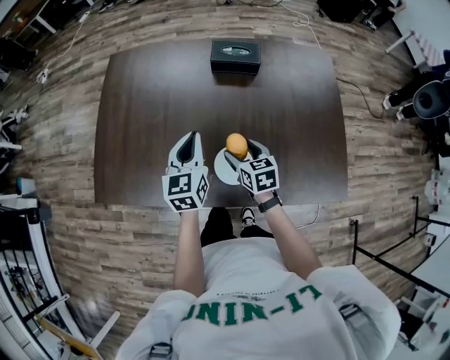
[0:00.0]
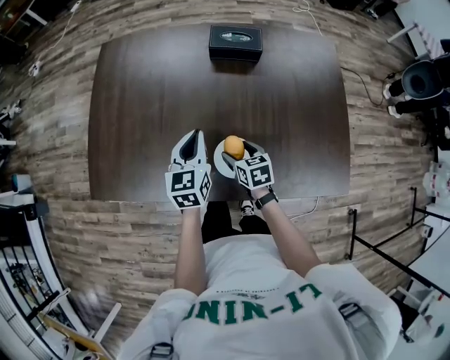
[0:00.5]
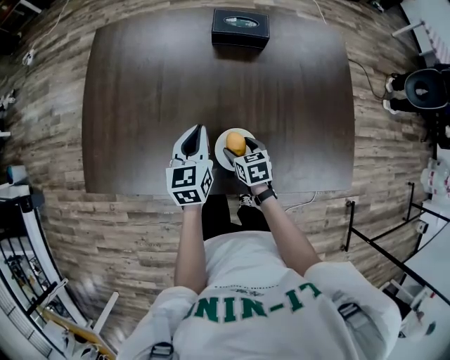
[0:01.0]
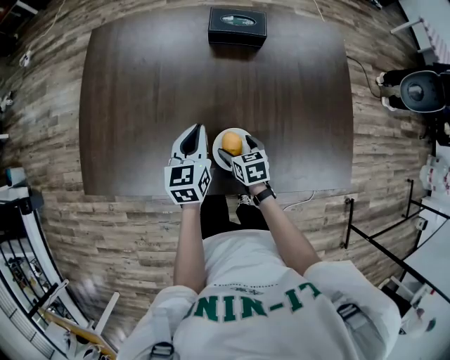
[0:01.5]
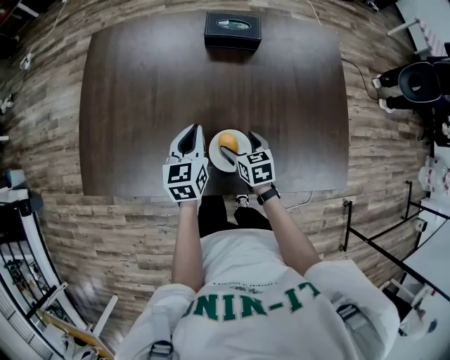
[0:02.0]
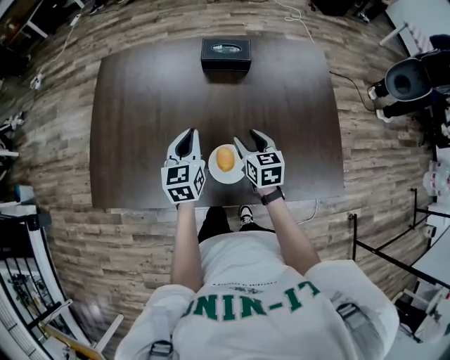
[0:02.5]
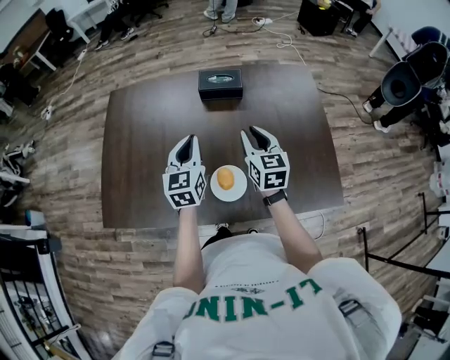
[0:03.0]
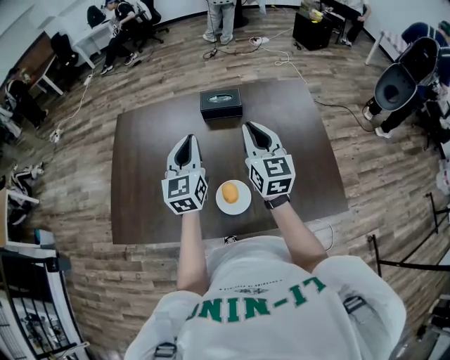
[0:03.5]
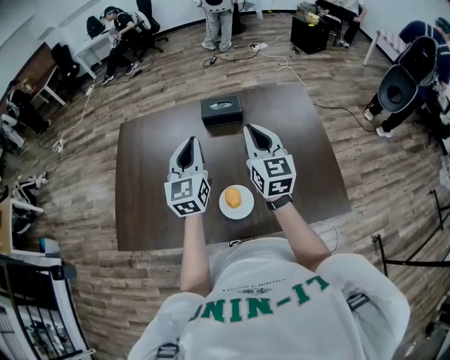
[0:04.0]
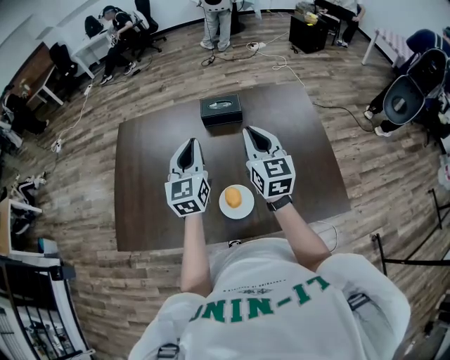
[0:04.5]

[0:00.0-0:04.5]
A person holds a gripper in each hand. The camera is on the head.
0:00.0 to 0:02.0: Both grippers travel together downward, approximately 10 cm.
0:02.0 to 0:04.5: The right gripper moves upward, some 35 cm, tilts its fingers approximately 40 degrees upward, and closes up. Meanwhile the left gripper travels upward by some 25 cm, and rotates roughly 30 degrees.

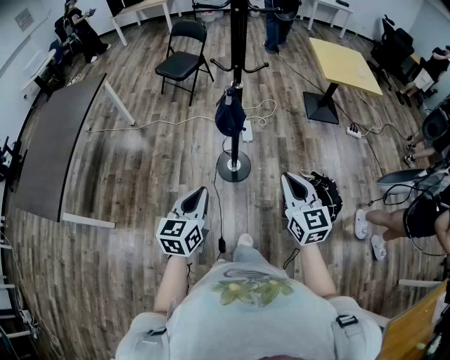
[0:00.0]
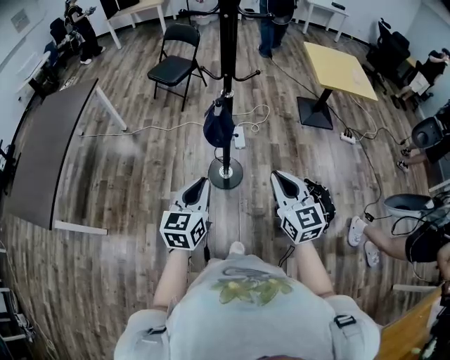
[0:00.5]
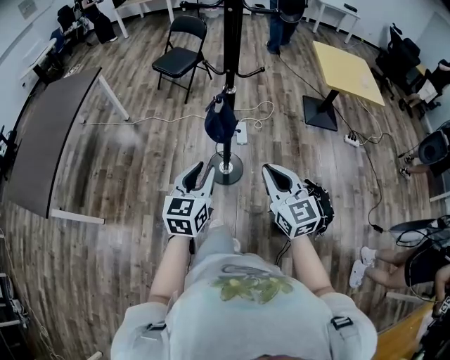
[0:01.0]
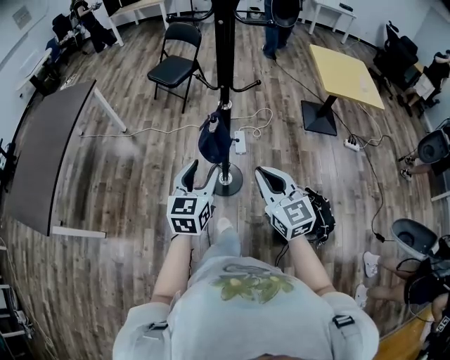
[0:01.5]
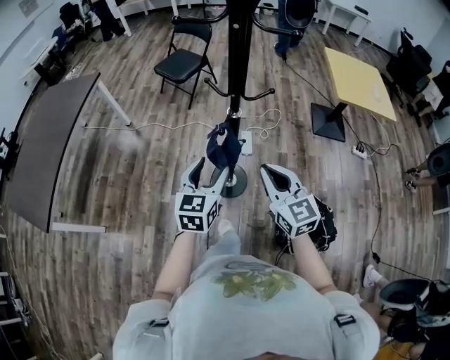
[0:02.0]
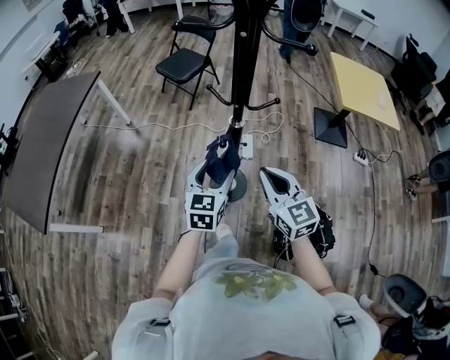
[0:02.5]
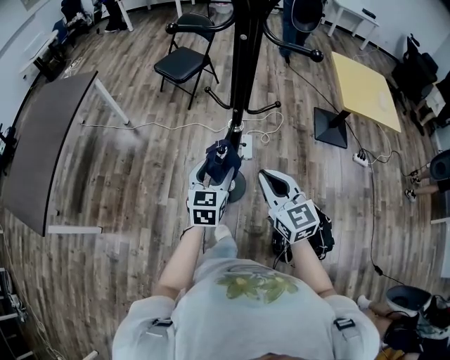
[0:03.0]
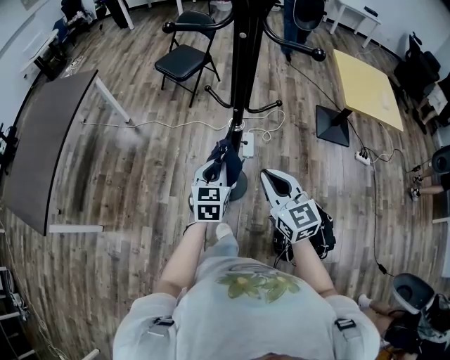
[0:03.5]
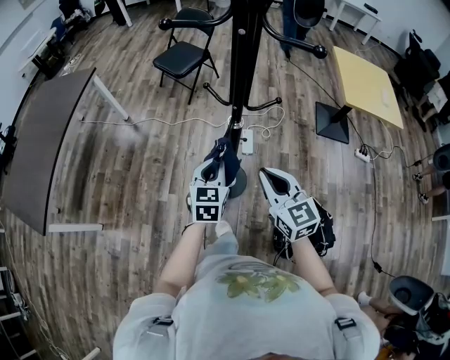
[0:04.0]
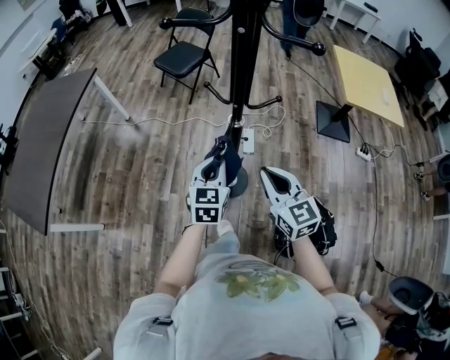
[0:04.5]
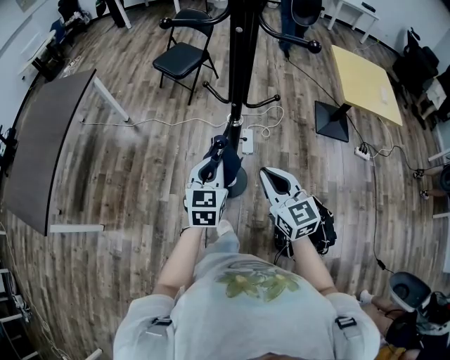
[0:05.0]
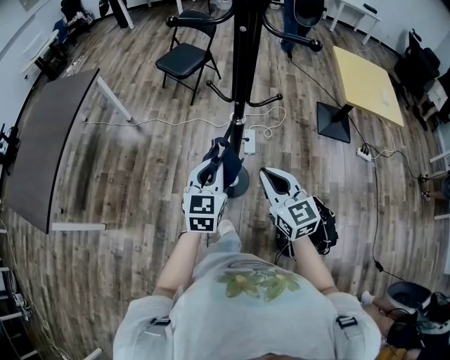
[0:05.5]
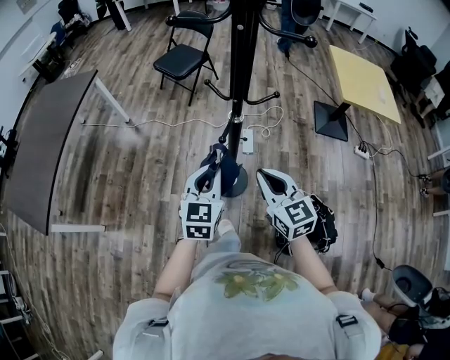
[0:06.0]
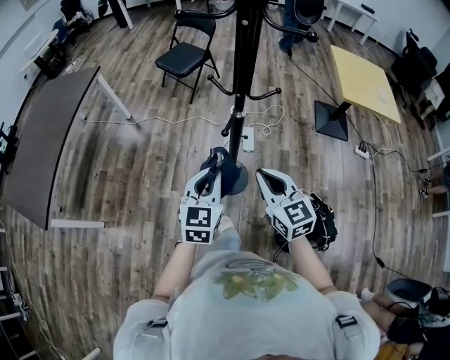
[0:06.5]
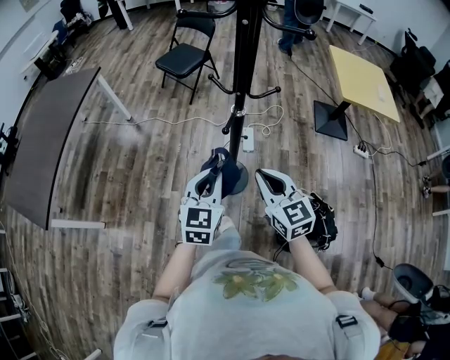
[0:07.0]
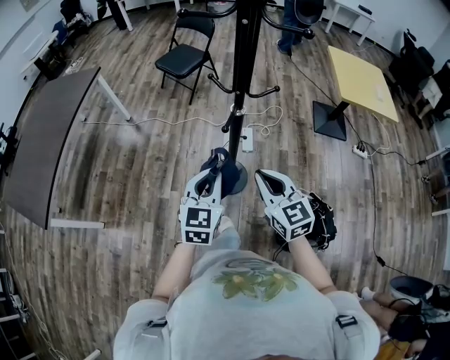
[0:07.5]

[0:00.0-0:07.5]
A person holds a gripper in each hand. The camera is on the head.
0:00.0 to 0:02.0: The two grippers go approximately 20 cm forward. The left gripper opens its fingers.
0:02.0 to 0:04.0: The right gripper shifts roughly 5 cm forward. The left gripper shifts about 10 cm forward and downward, and closes its fingers.
0:04.0 to 0:05.5: The left gripper shifts approximately 5 cm upward.
0:05.5 to 0:07.5: The right gripper changes place by some 5 cm, while the left gripper goes approximately 5 cm backward.

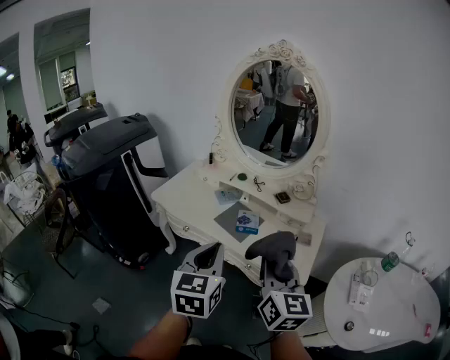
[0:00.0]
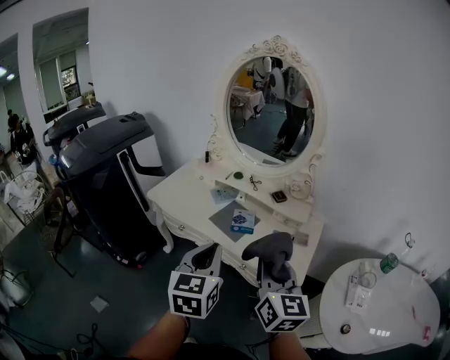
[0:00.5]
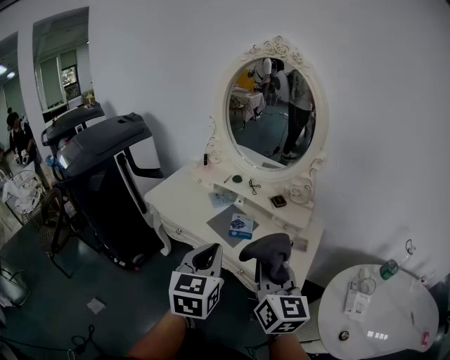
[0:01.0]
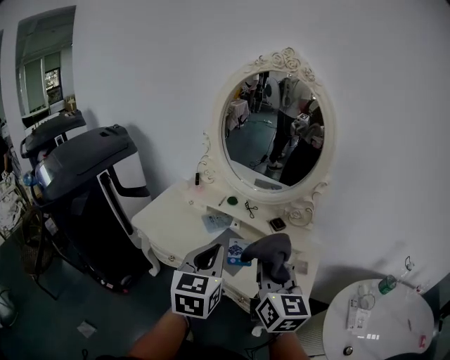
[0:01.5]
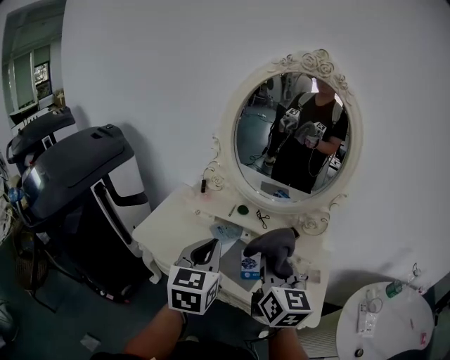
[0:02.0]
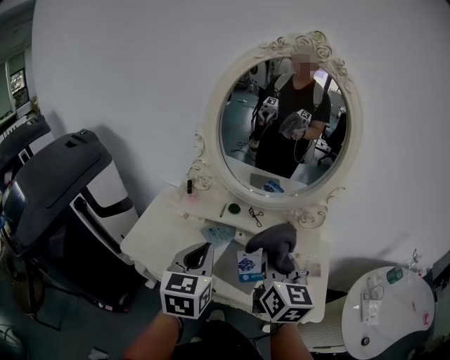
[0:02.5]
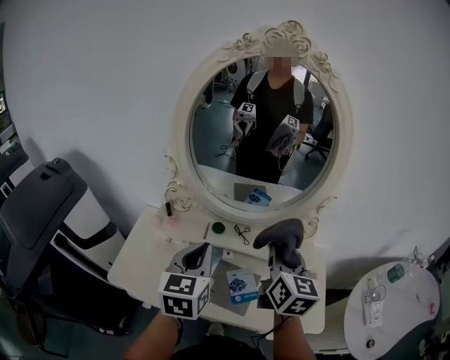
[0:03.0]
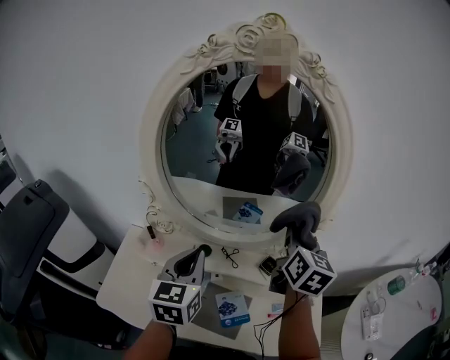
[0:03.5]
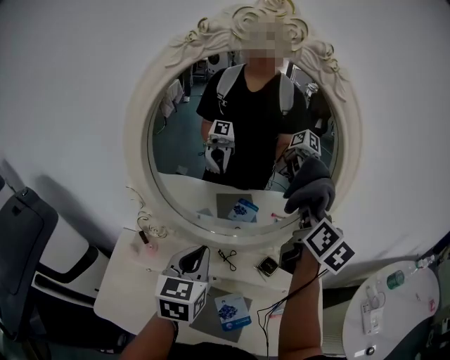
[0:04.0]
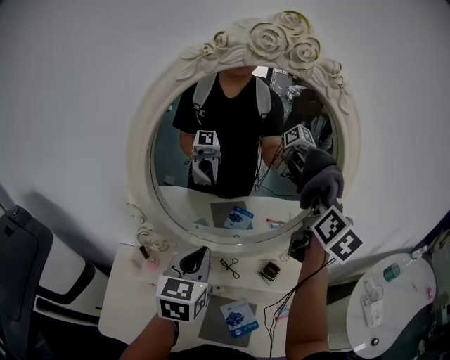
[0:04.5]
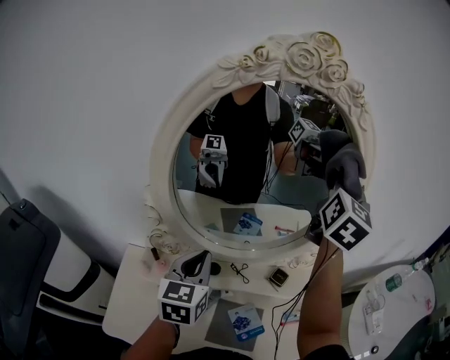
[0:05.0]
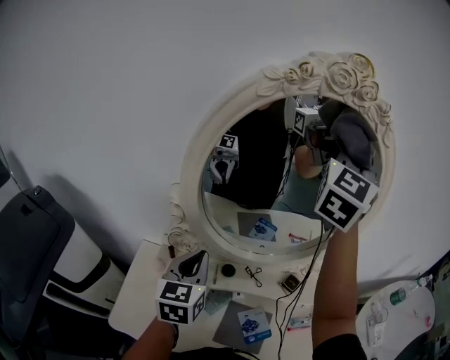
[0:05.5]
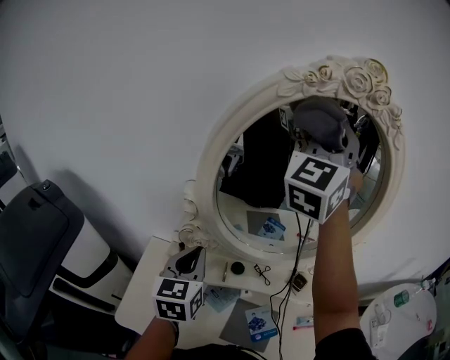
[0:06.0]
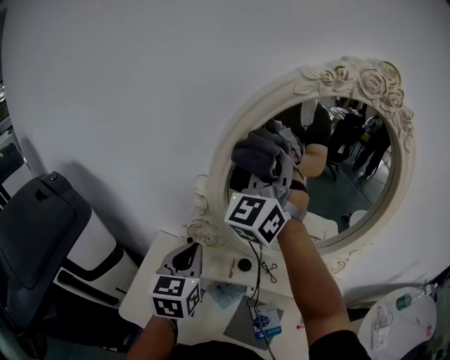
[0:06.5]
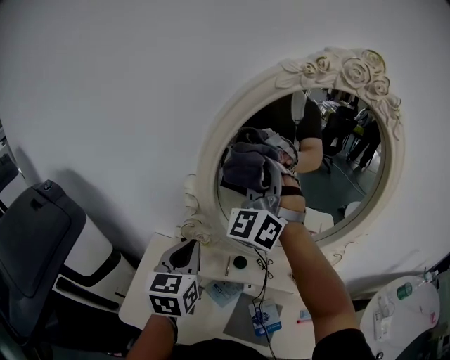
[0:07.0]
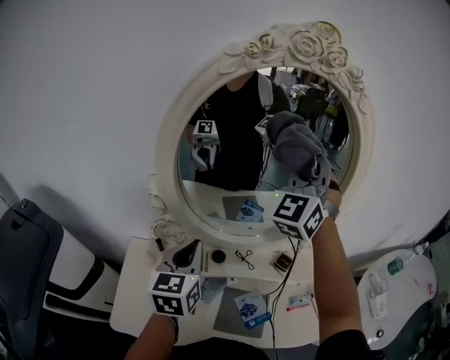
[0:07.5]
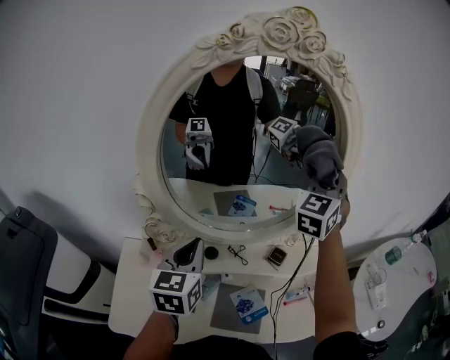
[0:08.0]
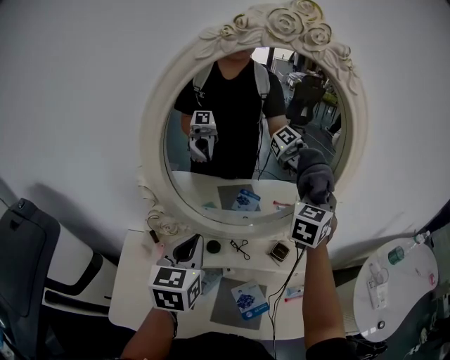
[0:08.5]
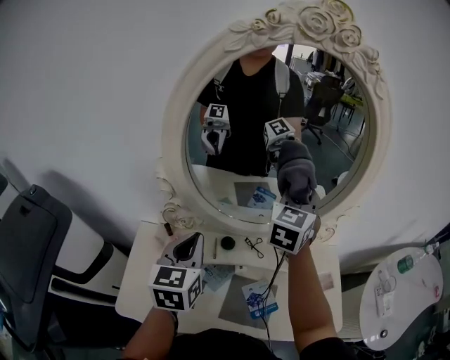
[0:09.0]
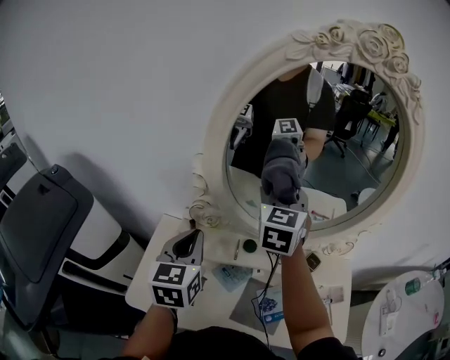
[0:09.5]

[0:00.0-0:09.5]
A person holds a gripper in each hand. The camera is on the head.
0:00.0 to 0:02.0: Both grippers move forward and to the left, approximately 25 cm.
0:02.0 to 0:04.0: The right gripper is displaced forward and to the right by about 40 cm, and changes its angle by approximately 40 degrees. Meanwhile the left gripper goes approximately 30 cm forward.
0:04.0 to 0:05.5: The right gripper shifts approximately 30 cm upward and to the left, and rotates around the line of its fingers by approximately 50 degrees, counterclockwise from behind. The left gripper moves to the left, roughly 10 cm.
0:05.5 to 0:07.5: The left gripper travels to the left and back again, roughly 5 cm each way. The right gripper is displaced downward by some 10 cm, reaches some 25 cm to the left, then returns, and rotates about 30 degrees.
0:07.5 to 0:09.5: The right gripper is displaced downward and to the left by some 20 cm, and changes its angle by approximately 50 degrees; the left gripper heads to the left, covering roughly 10 cm.

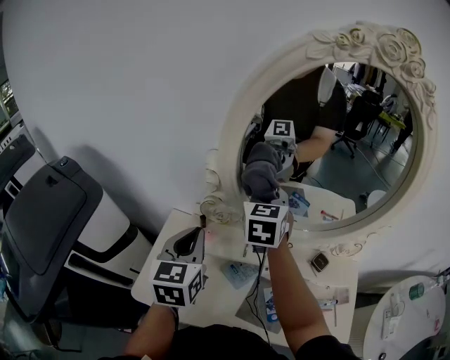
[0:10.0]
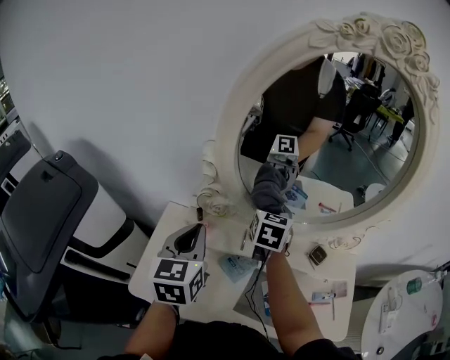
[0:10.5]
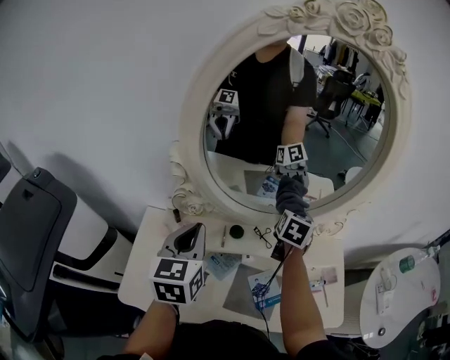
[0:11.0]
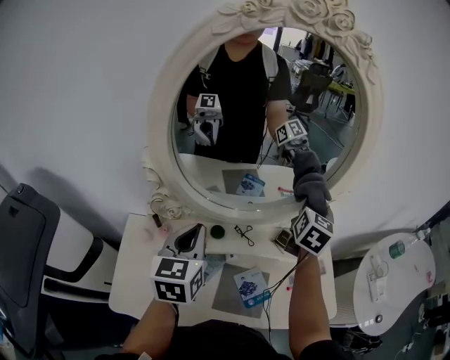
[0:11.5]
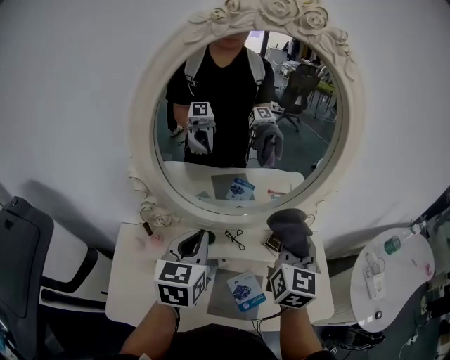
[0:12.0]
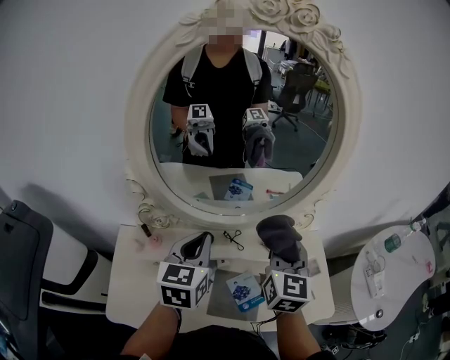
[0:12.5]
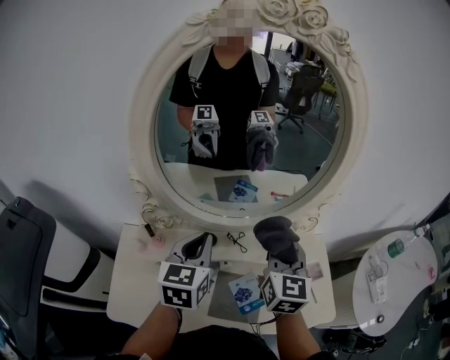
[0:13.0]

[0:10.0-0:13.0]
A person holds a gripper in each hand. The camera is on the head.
0:10.0 to 0:11.5: The right gripper heads to the right, covering some 35 cm, and changes its angle by some 40 degrees. Meanwhile the left gripper is displaced to the right by some 15 cm.
0:11.5 to 0:13.0: The left gripper changes place by some 5 cm. Meanwhile the right gripper travels backward and to the left by approximately 15 cm.

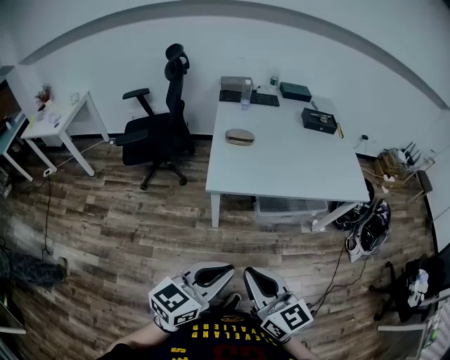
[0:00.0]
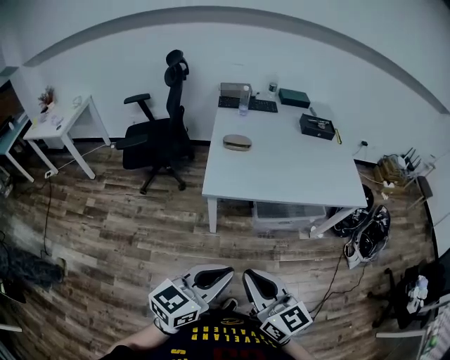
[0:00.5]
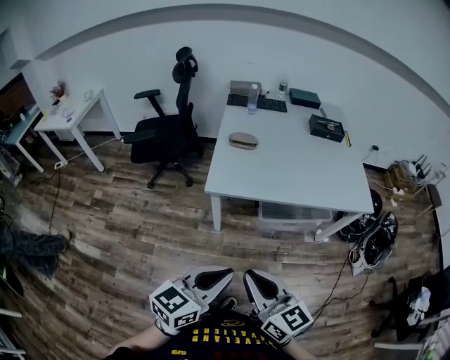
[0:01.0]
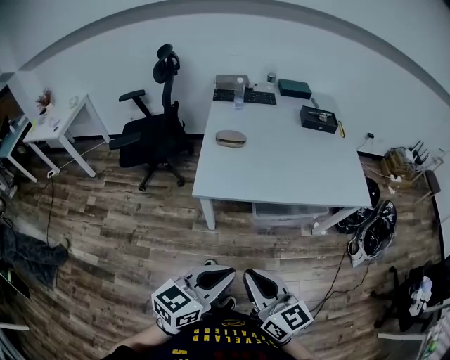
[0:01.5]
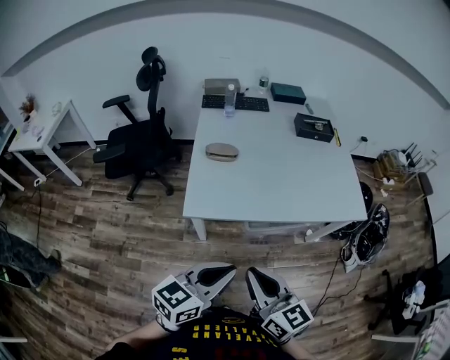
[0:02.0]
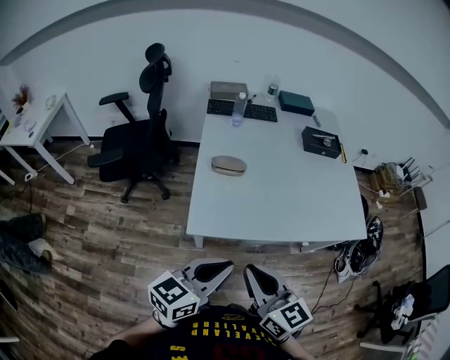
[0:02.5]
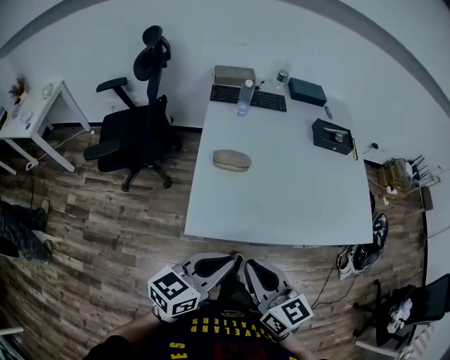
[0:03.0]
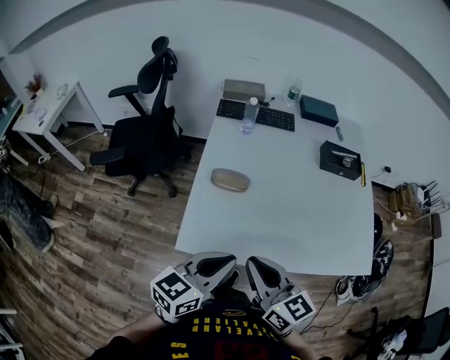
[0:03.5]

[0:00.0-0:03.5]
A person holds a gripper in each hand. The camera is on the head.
0:00.0 to 0:02.0: Both grippers move forward and to the right, roughly 15 cm.
0:02.0 to 0:03.5: The grippers both shift forward by about 25 cm.
